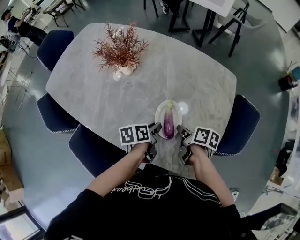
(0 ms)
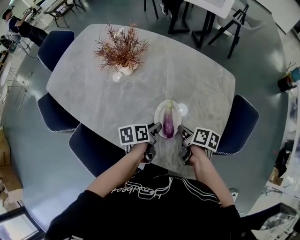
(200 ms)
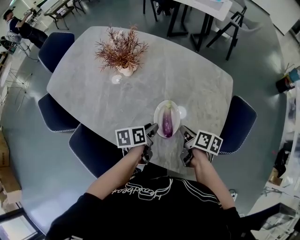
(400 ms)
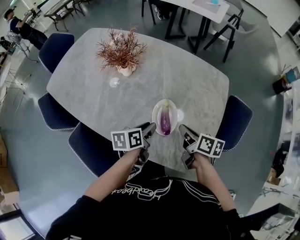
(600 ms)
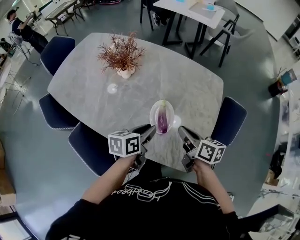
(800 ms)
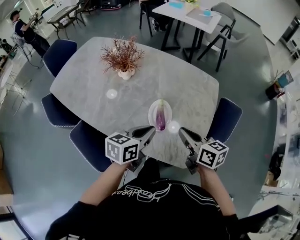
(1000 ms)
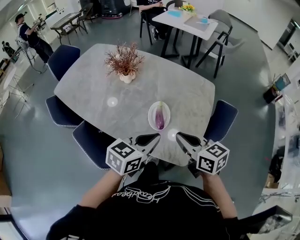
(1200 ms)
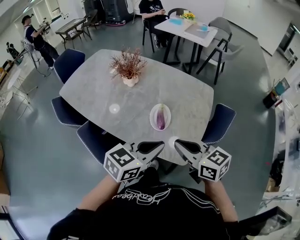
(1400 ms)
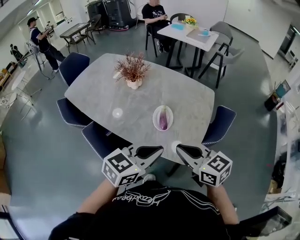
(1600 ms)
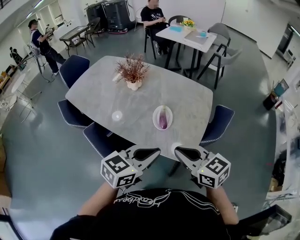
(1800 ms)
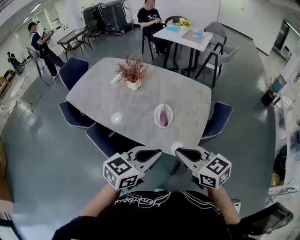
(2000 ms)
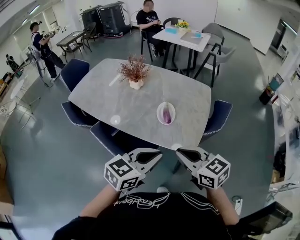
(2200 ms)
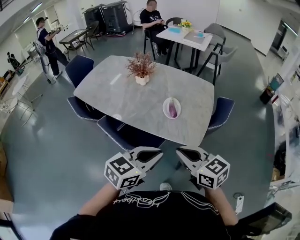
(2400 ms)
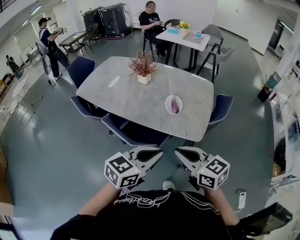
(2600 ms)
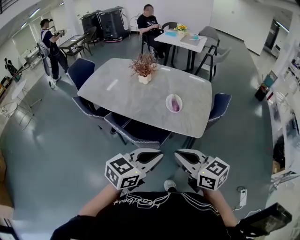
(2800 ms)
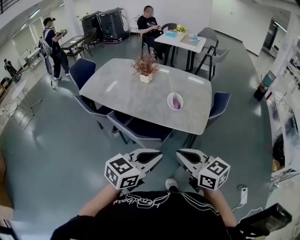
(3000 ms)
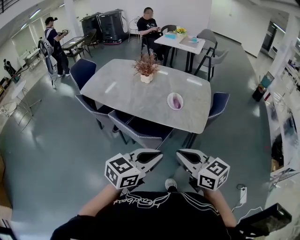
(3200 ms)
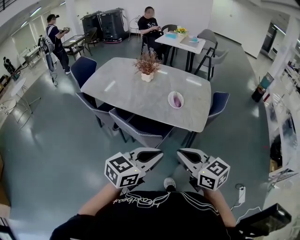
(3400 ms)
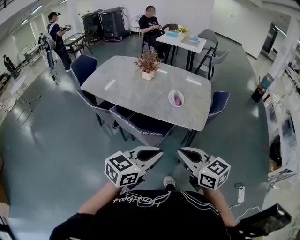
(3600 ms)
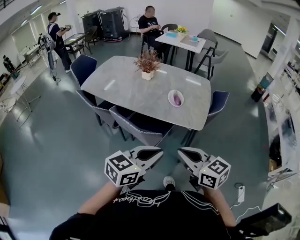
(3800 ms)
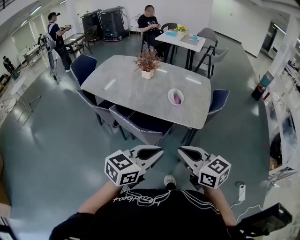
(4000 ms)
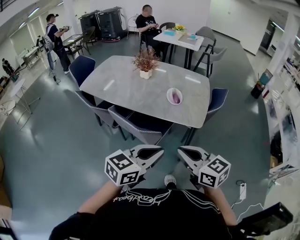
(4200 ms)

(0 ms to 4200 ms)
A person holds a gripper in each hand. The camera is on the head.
0 ms - 1400 ms: The grippers both shift upward and backward by about 35 cm. The left gripper rolls clockwise, seen from behind, by about 50 degrees; the right gripper rolls counterclockwise, seen from behind, by roughly 60 degrees.
1400 ms - 2800 ms: Both grippers travel together backward and to the left, about 30 cm.
2800 ms - 4200 ms: The two grippers go approximately 5 cm backward.

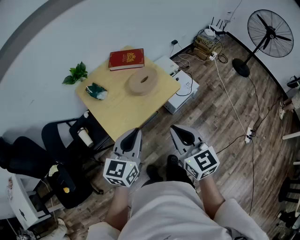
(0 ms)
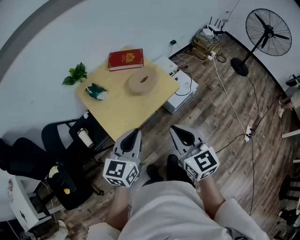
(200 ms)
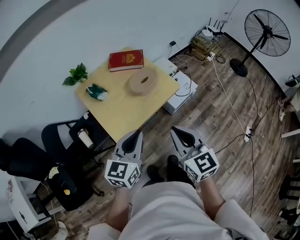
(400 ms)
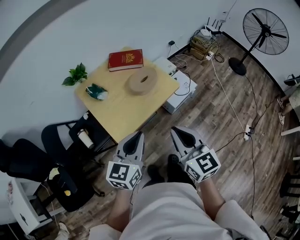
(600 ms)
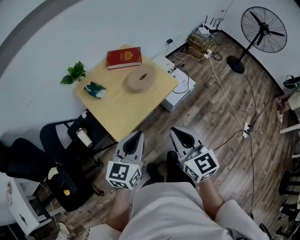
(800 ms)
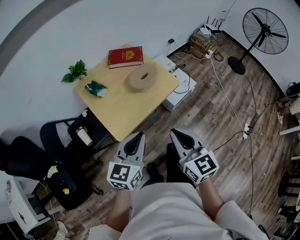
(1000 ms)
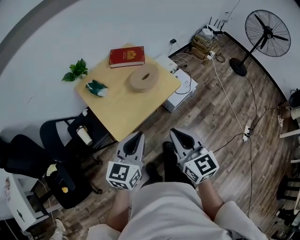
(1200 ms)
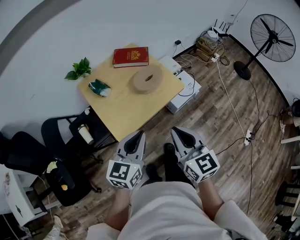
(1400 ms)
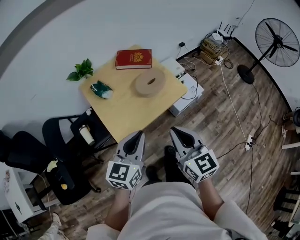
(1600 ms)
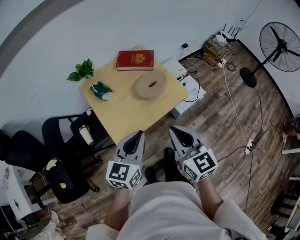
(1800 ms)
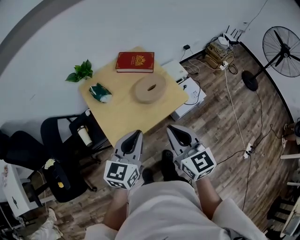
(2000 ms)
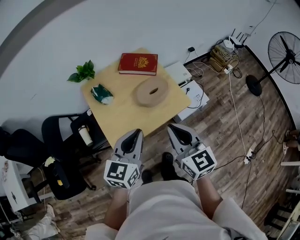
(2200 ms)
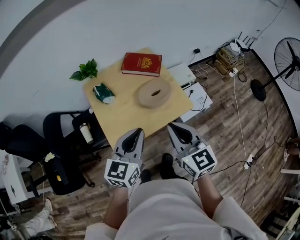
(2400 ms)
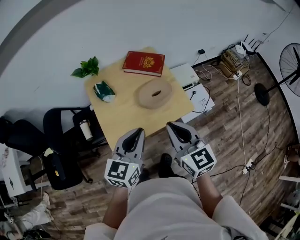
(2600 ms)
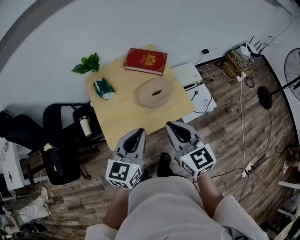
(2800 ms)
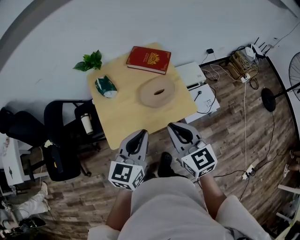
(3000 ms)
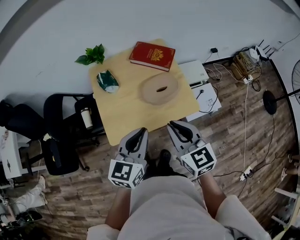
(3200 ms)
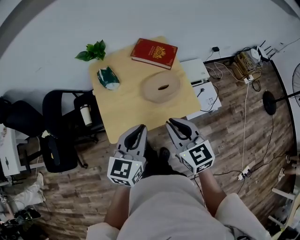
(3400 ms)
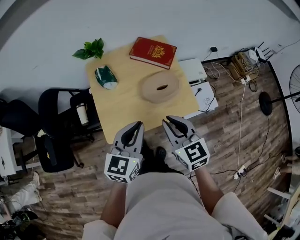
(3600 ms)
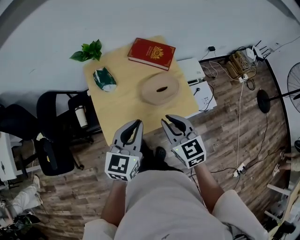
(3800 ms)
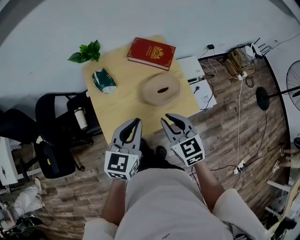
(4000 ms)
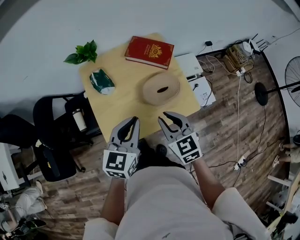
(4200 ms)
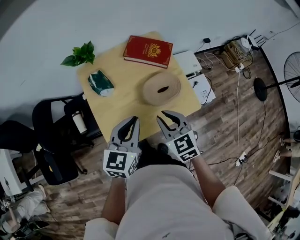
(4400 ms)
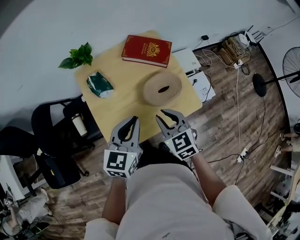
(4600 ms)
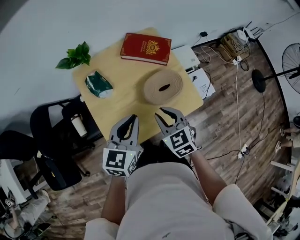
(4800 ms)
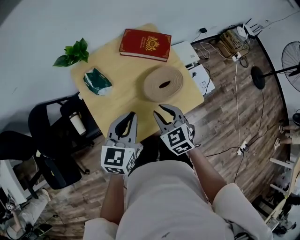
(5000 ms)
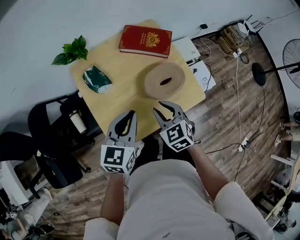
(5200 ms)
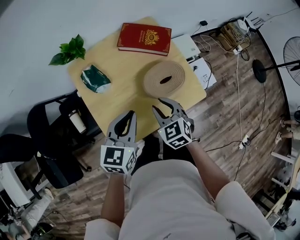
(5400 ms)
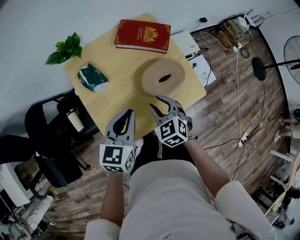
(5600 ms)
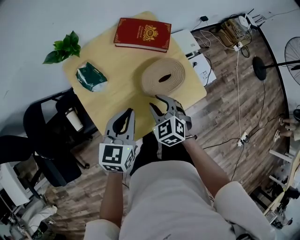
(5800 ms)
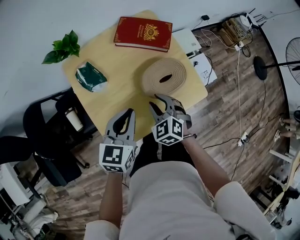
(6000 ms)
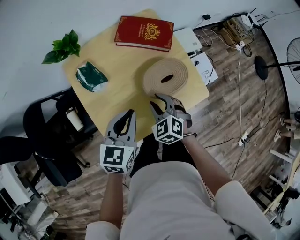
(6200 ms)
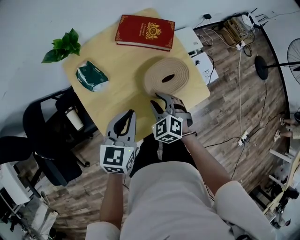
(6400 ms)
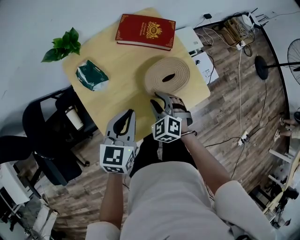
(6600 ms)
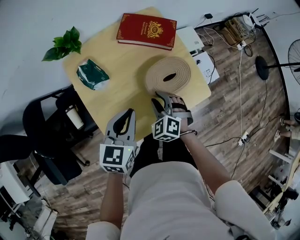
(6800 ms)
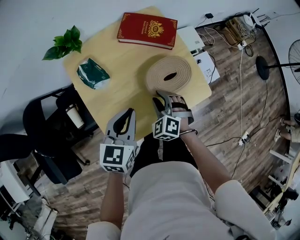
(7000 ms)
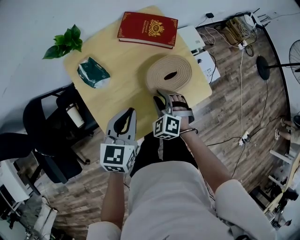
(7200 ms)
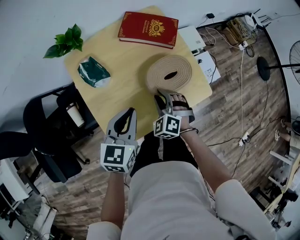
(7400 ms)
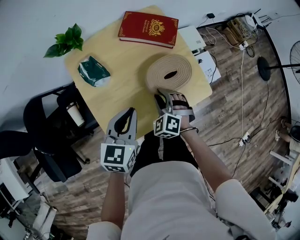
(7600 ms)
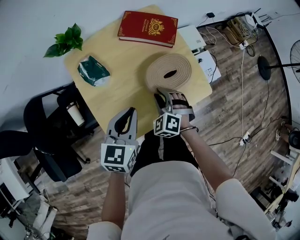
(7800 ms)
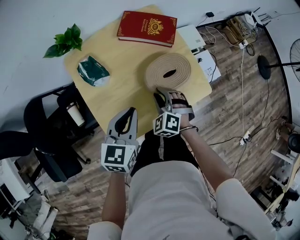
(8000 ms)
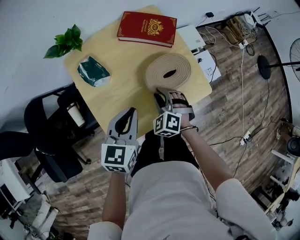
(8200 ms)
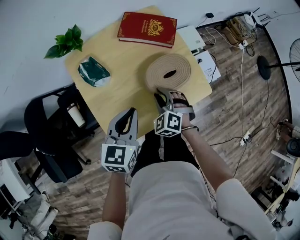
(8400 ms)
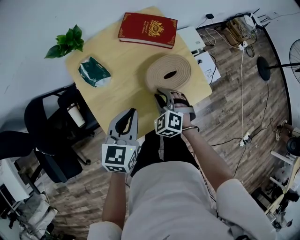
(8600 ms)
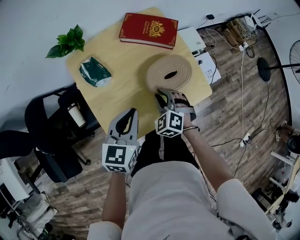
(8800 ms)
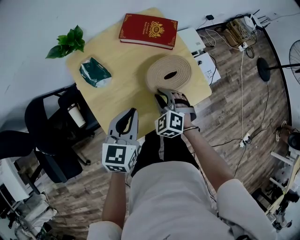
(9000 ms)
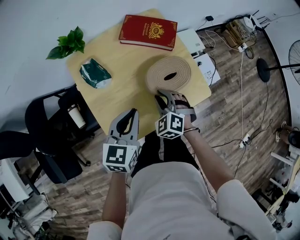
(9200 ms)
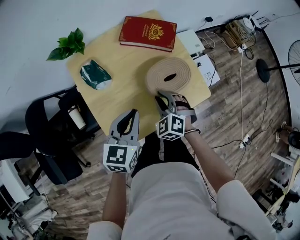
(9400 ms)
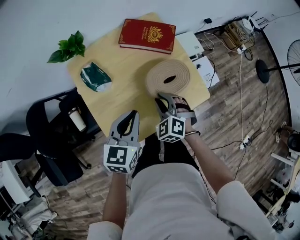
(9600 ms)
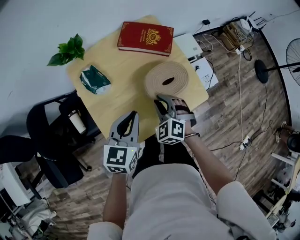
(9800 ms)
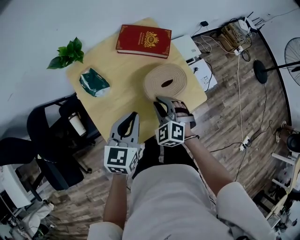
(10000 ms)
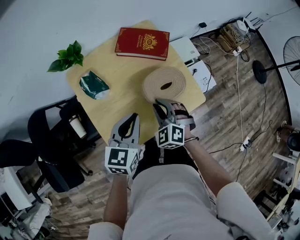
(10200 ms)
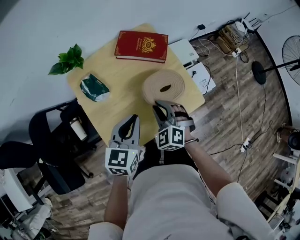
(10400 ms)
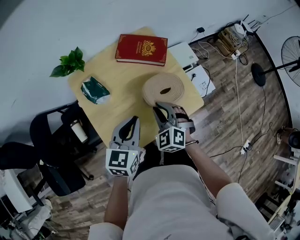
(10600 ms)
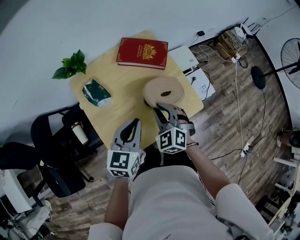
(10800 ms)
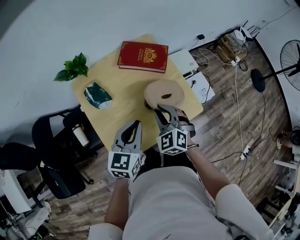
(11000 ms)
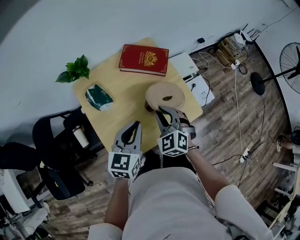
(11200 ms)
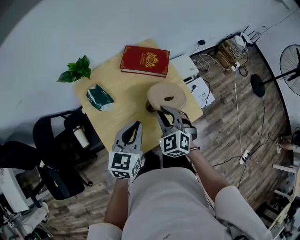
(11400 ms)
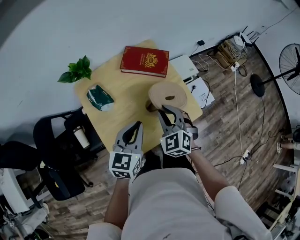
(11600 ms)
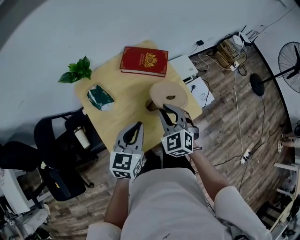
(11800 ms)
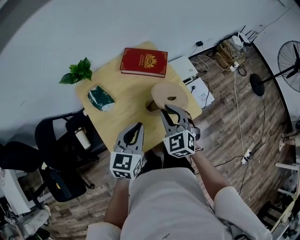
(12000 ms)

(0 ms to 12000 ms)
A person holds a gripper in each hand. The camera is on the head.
0 ms - 1600 ms: There are only small adjustments of the grippers.
1600 ms - 3000 ms: The right gripper is displaced forward by about 15 cm, and swivels some 20 degrees. Meanwhile the left gripper goes approximately 15 cm forward and to the right.
3000 ms - 4400 ms: The right gripper goes roughly 15 cm forward, downward and to the left. The left gripper is displaced forward and to the left by approximately 15 cm.
4400 ms - 6000 ms: The right gripper shifts approximately 15 cm downward and forward, and rotates roughly 20 degrees. Meanwhile the left gripper heads downward, covering roughly 10 cm.
6000 ms - 9000 ms: The grippers make only small movements.
9000 ms - 10400 ms: The right gripper is displaced upward by about 5 cm.
10400 ms - 12000 ms: The right gripper travels upward by approximately 10 cm.

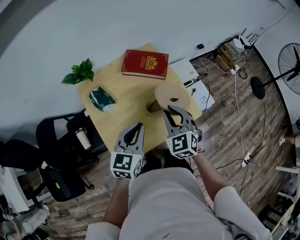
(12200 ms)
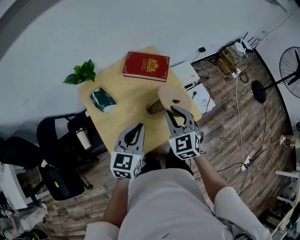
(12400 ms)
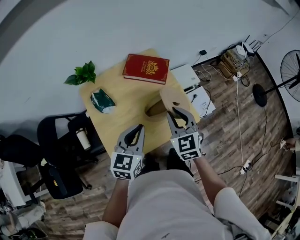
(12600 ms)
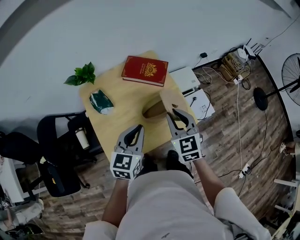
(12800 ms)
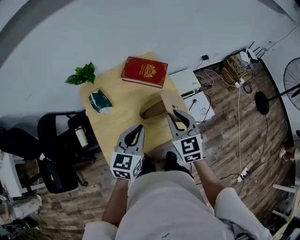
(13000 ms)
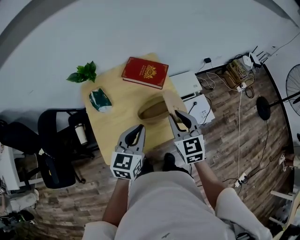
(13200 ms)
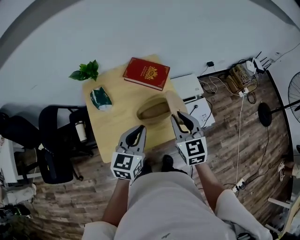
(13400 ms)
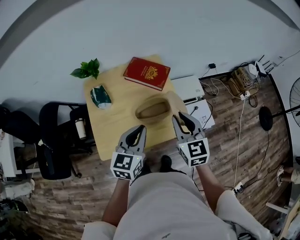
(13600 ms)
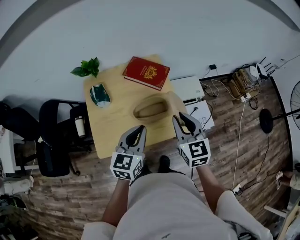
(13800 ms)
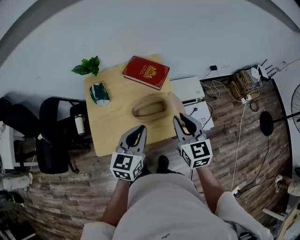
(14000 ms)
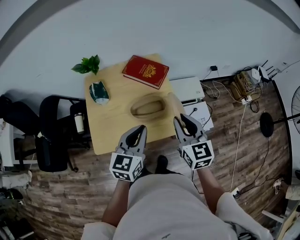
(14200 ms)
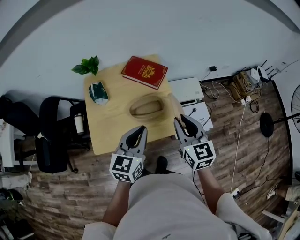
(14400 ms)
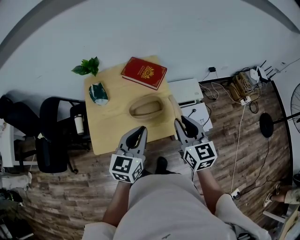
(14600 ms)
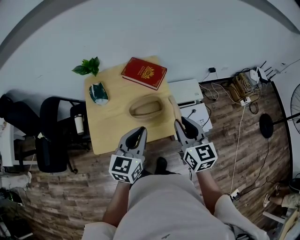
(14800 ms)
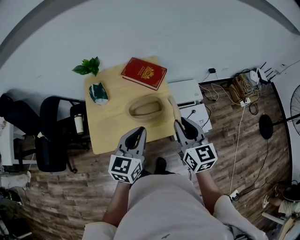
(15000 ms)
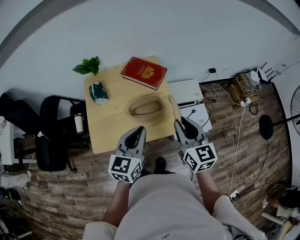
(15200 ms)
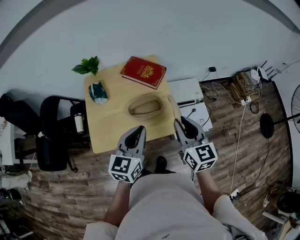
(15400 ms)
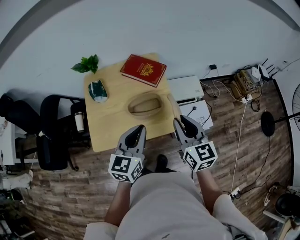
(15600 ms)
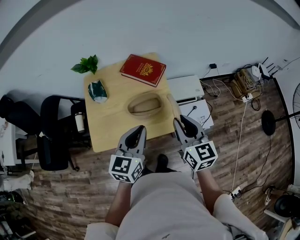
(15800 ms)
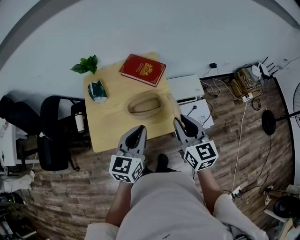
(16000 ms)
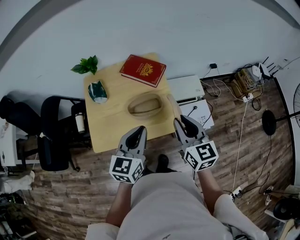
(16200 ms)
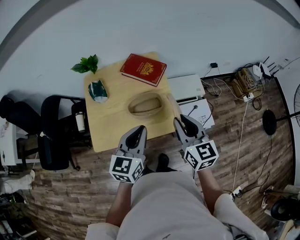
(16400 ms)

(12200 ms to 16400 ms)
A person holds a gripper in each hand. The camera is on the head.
12200 ms - 13600 ms: The left gripper moves to the right, about 10 cm; the right gripper is displaced to the right and upward by some 15 cm, and rotates roughly 20 degrees.
13600 ms - 15000 ms: Both grippers move to the right, approximately 5 cm.
15000 ms - 16400 ms: There are only small adjustments of the grippers.

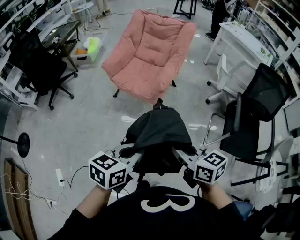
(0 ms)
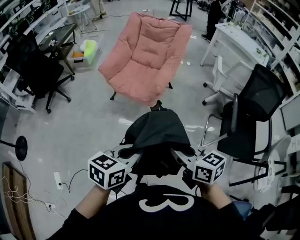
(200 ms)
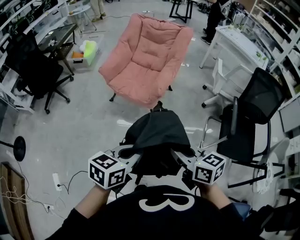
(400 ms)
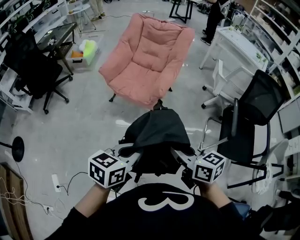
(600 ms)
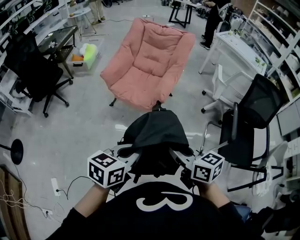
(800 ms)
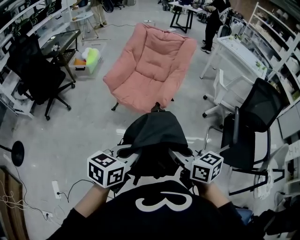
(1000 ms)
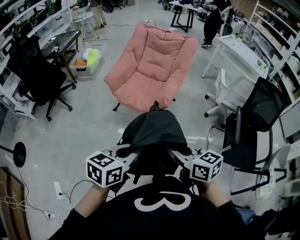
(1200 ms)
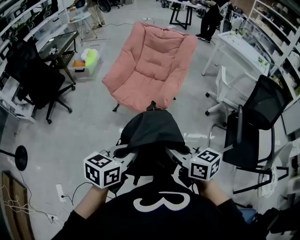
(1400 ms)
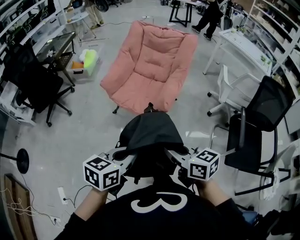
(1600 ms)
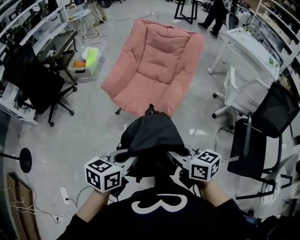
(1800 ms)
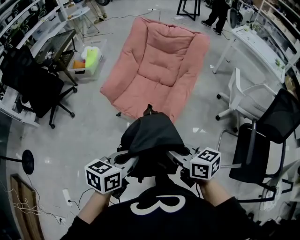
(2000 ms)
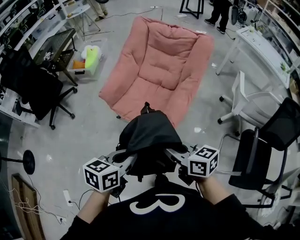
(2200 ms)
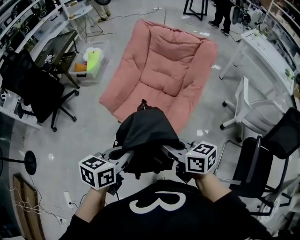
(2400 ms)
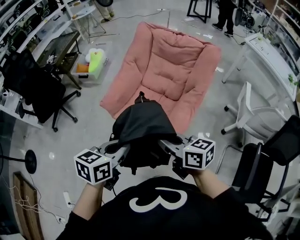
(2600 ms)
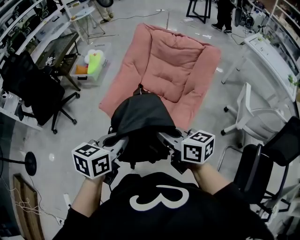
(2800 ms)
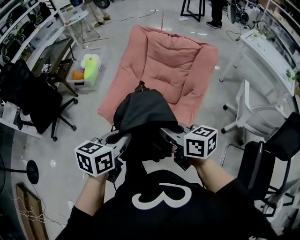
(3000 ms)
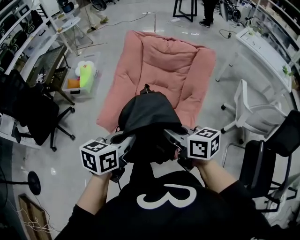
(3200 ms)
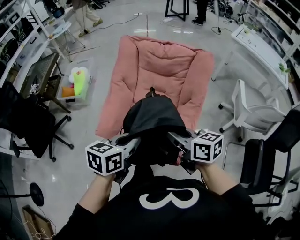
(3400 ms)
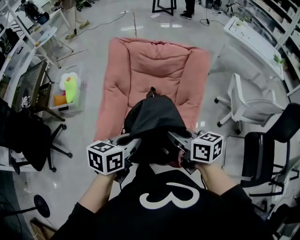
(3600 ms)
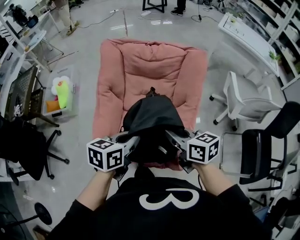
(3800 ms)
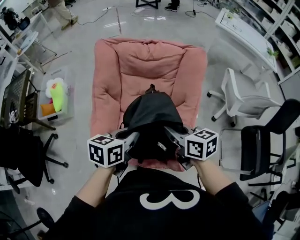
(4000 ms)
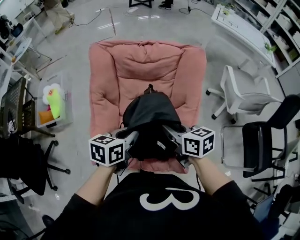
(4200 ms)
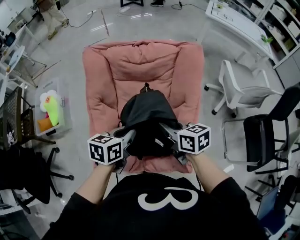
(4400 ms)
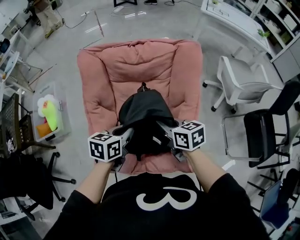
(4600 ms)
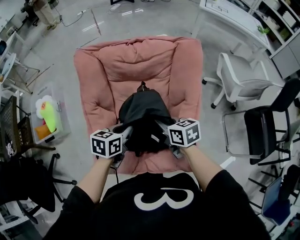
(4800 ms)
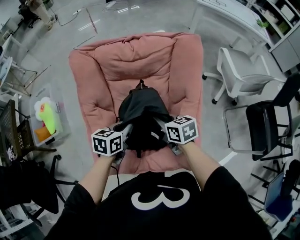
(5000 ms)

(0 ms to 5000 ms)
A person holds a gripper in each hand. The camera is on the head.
0 ms - 1600 ms: The two grippers go approximately 15 cm forward and to the left.
1600 ms - 3400 ms: Both grippers are carried forward, approximately 50 cm.
3400 ms - 5000 ms: Both grippers travel together forward and downward, about 35 cm. The right gripper swivels about 30 degrees. Meanwhile the left gripper changes its angle by some 20 degrees.
